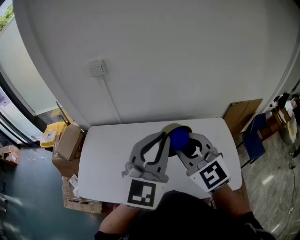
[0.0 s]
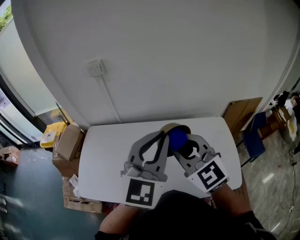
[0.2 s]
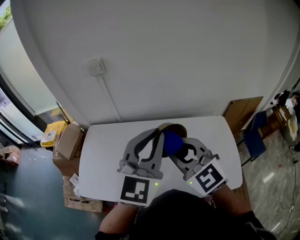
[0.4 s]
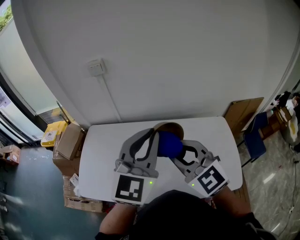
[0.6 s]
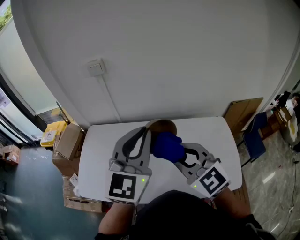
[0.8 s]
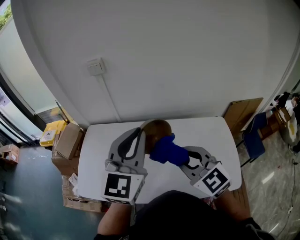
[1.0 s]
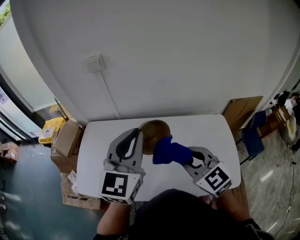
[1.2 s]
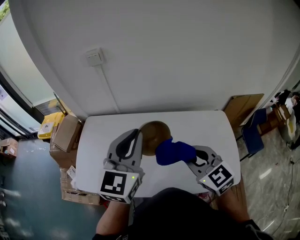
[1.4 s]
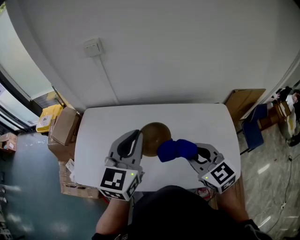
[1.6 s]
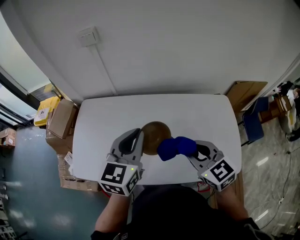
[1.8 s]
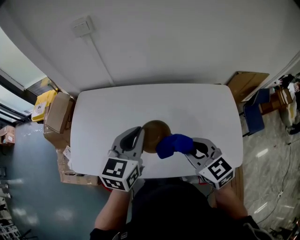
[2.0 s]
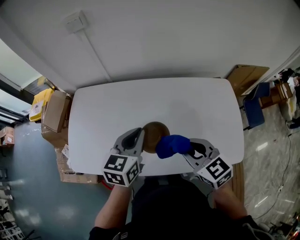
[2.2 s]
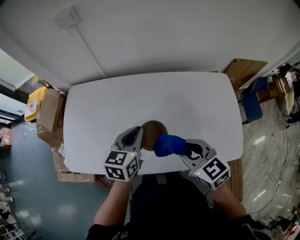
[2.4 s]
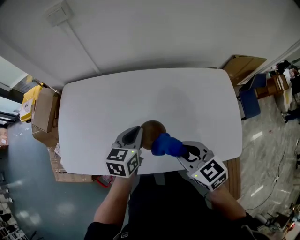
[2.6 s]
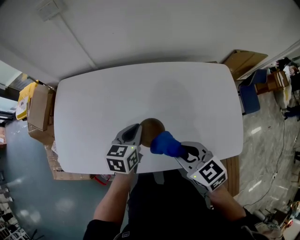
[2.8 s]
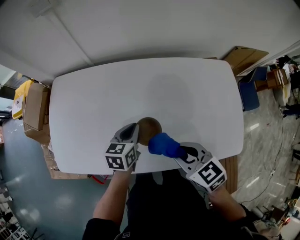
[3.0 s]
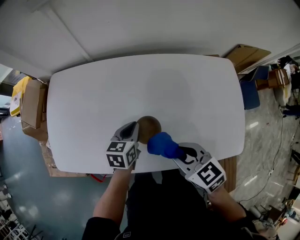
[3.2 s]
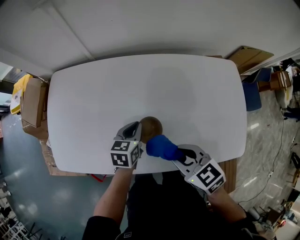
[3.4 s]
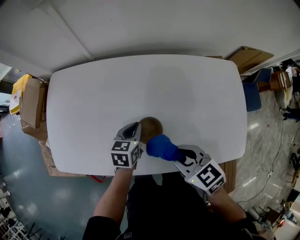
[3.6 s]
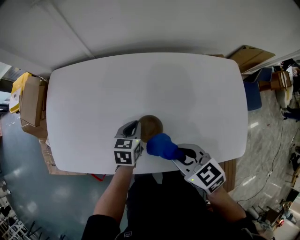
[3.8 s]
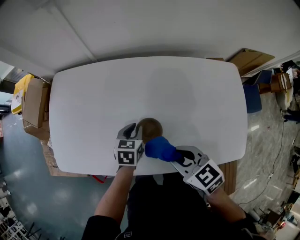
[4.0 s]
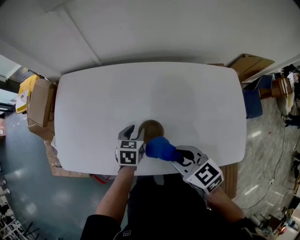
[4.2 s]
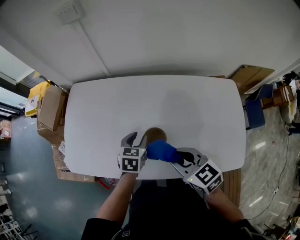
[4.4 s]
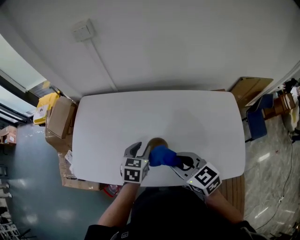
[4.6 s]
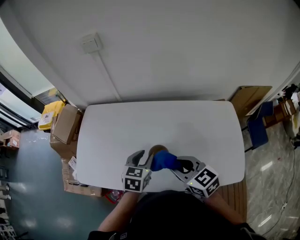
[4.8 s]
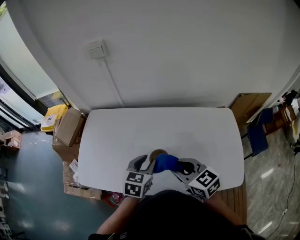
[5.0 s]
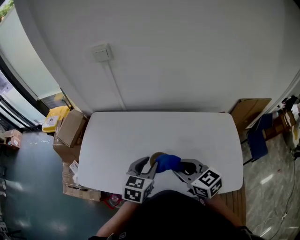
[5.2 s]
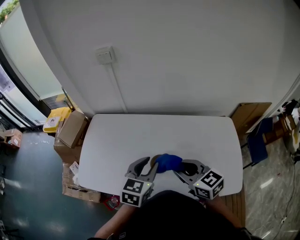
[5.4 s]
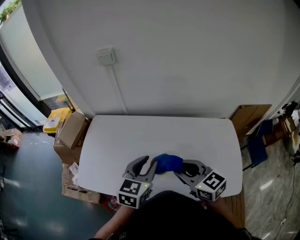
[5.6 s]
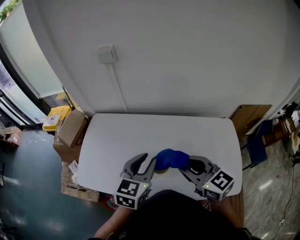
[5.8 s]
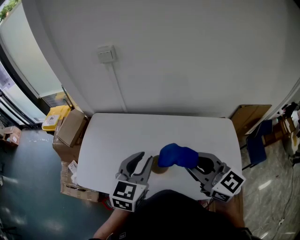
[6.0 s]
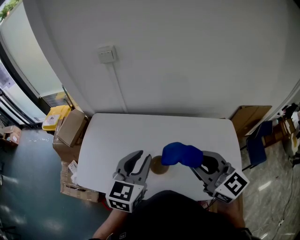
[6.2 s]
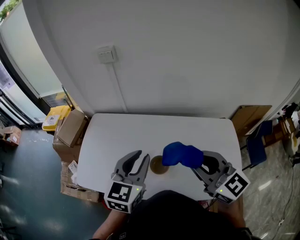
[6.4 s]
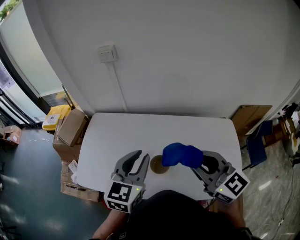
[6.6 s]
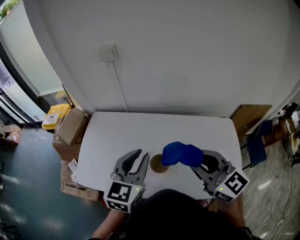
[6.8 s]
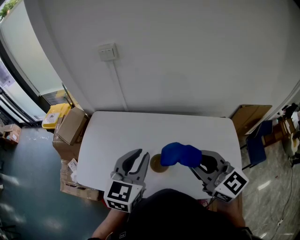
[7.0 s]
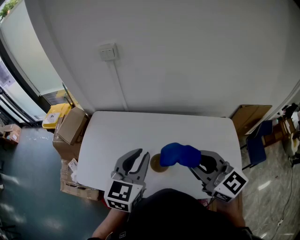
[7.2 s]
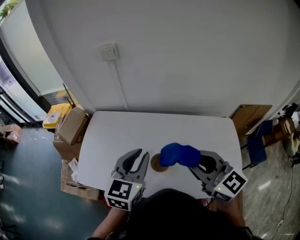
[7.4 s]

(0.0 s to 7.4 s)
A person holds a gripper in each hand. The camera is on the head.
0.0 s - 1.4 s: The left gripper travels to the left by some 5 cm. The right gripper goes some 10 cm downward.
1.4 s - 3.0 s: The left gripper heads downward, covering some 35 cm, and tilts its fingers about 30 degrees downward. The right gripper shifts roughly 20 cm downward, and swivels roughly 30 degrees.
3.0 s - 4.4 s: The left gripper opens up.
4.4 s - 6.0 s: Both grippers travel together upward, about 25 cm. The right gripper changes its angle by about 30 degrees, while the left gripper rotates about 30 degrees.
6.0 s - 7.4 s: The grippers make only small movements.

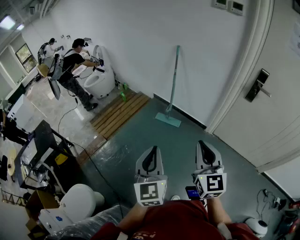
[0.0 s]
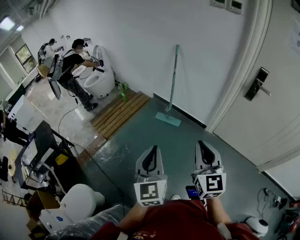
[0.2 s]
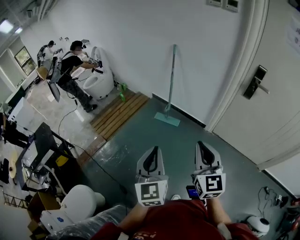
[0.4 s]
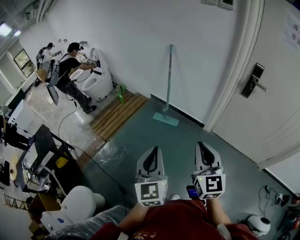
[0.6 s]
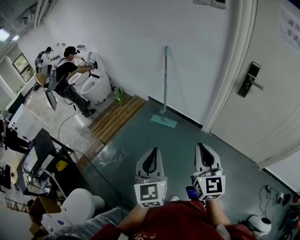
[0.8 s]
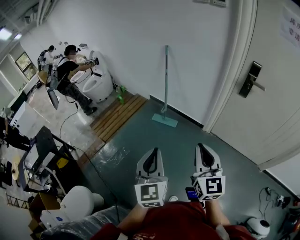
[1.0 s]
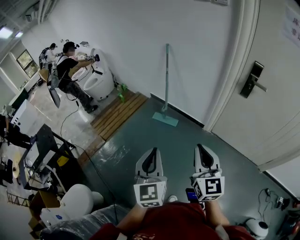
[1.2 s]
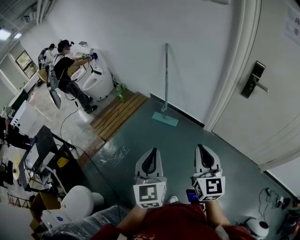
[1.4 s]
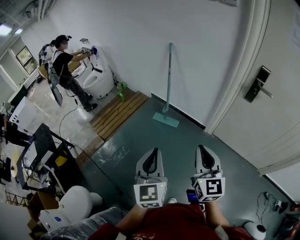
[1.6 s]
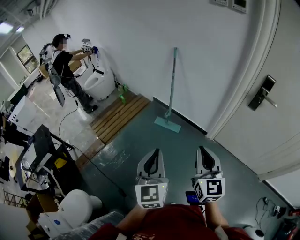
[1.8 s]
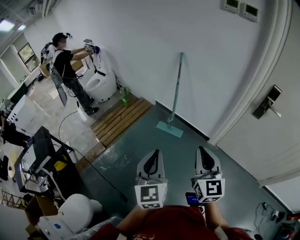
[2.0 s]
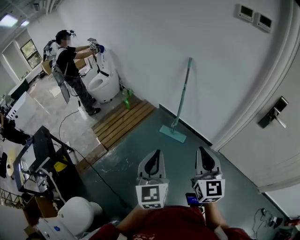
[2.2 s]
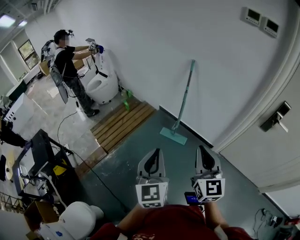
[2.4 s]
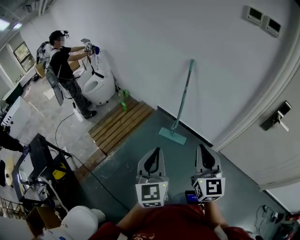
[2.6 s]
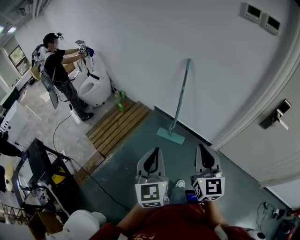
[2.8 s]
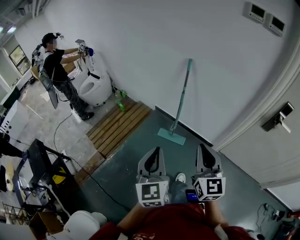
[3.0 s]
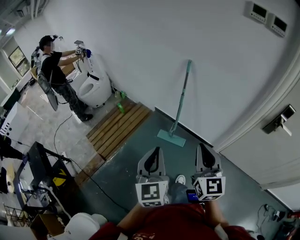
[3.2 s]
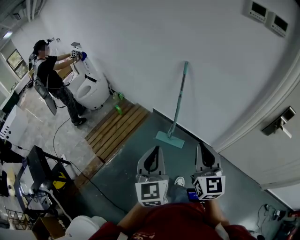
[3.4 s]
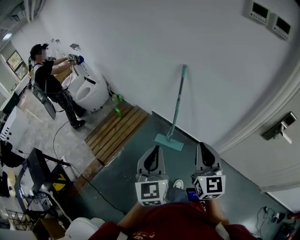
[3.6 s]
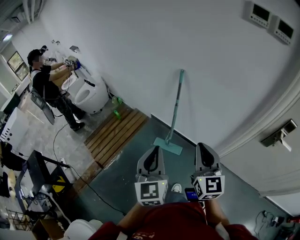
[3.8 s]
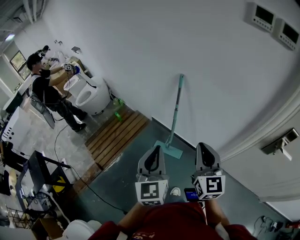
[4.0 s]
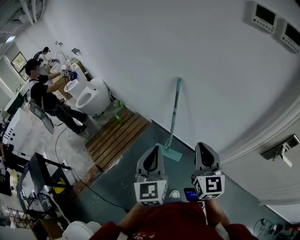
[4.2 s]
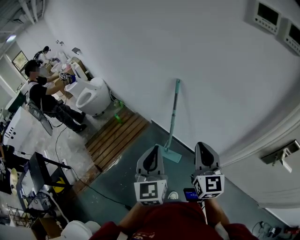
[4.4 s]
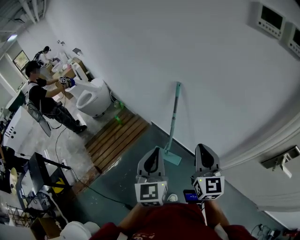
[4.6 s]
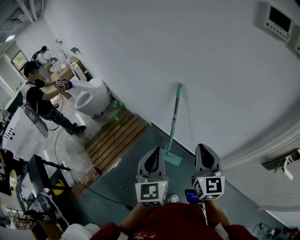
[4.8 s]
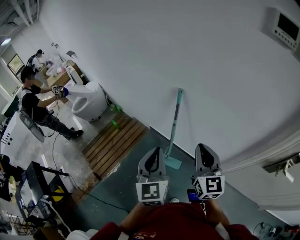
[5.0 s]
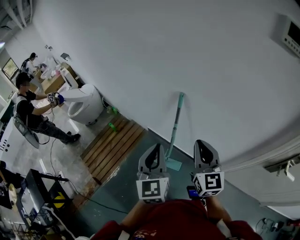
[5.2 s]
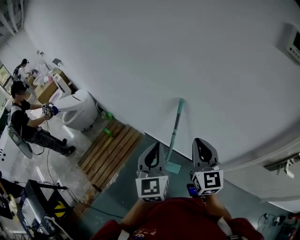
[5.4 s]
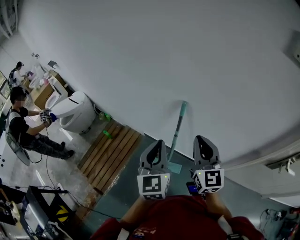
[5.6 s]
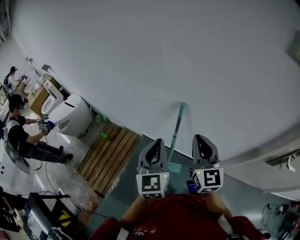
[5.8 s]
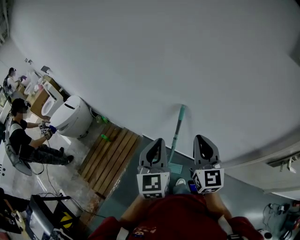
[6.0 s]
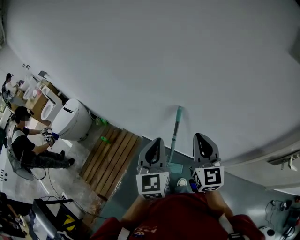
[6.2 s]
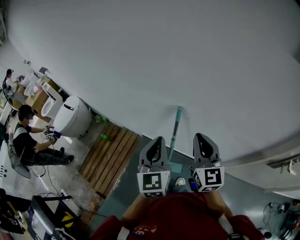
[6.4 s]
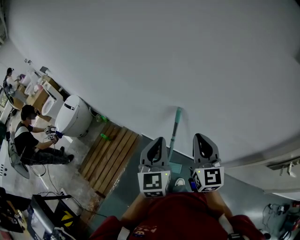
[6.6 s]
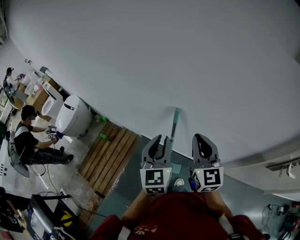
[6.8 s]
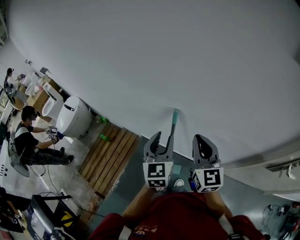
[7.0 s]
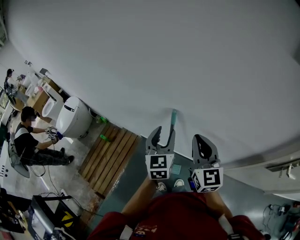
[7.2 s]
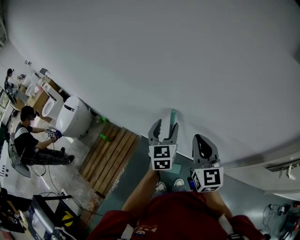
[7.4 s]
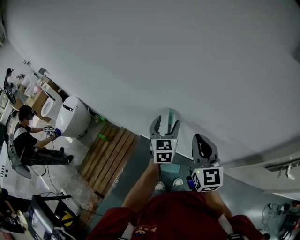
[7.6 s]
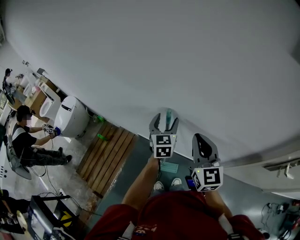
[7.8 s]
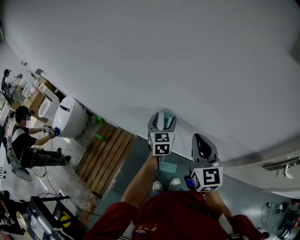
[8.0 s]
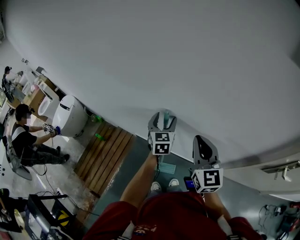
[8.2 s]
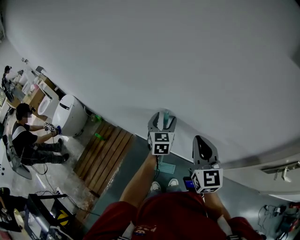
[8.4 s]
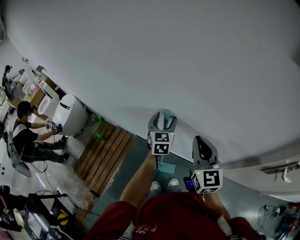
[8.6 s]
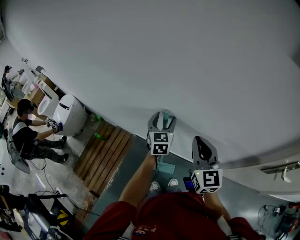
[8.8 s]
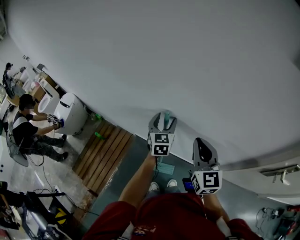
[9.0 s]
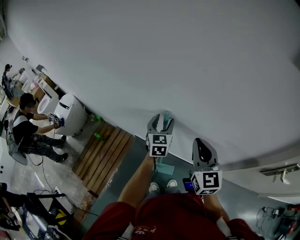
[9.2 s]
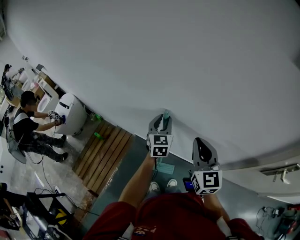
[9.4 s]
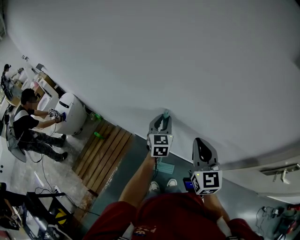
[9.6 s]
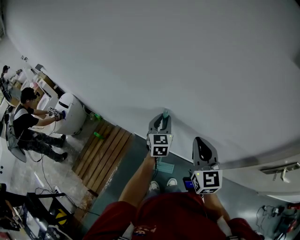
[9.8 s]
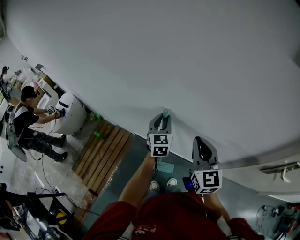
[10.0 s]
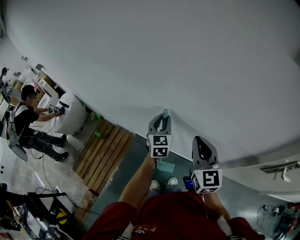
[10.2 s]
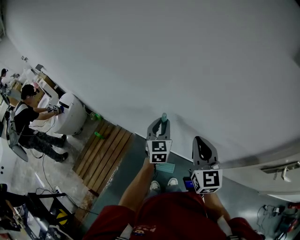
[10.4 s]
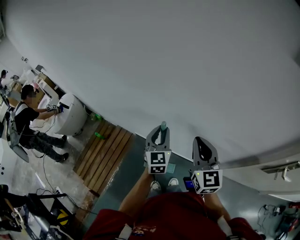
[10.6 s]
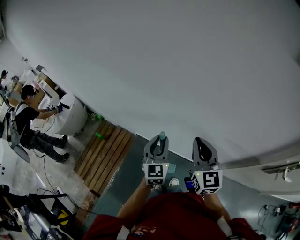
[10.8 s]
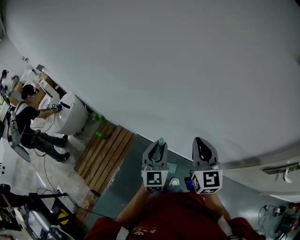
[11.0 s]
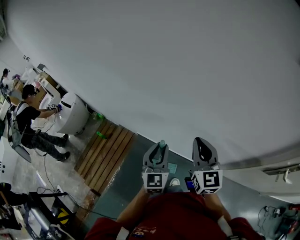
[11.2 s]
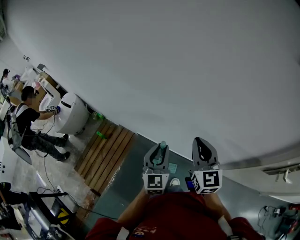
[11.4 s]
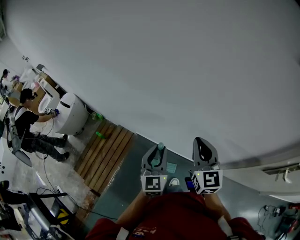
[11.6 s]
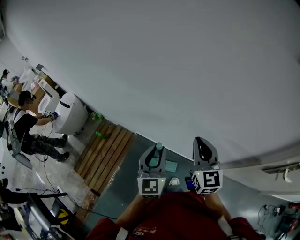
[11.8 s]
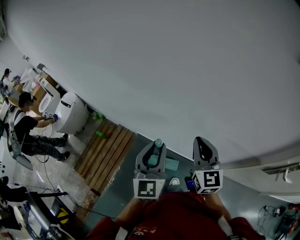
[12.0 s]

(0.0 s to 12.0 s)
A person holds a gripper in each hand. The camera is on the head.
0.0 s - 1.6 s: Both grippers travel together to the right and forward, approximately 10 cm.
1.6 s - 3.0 s: Both grippers travel together forward and to the left, some 30 cm.
3.0 s - 4.4 s: The two grippers go approximately 30 cm forward and to the right.
4.4 s - 6.0 s: The grippers both shift forward by approximately 25 cm.
6.0 s - 7.6 s: The left gripper shifts approximately 20 cm forward, to the right and downward, and opens up; the right gripper shifts roughly 10 cm to the right.
7.6 s - 9.0 s: The grippers make only small movements.
9.0 s - 10.4 s: The left gripper closes its fingers.
10.4 s - 12.0 s: The left gripper moves backward and upward, some 20 cm.

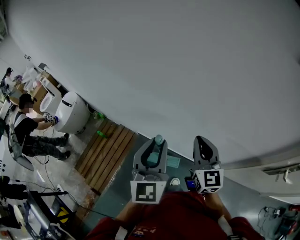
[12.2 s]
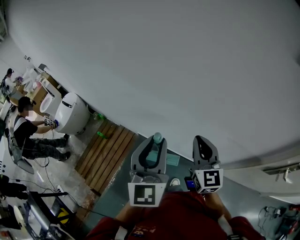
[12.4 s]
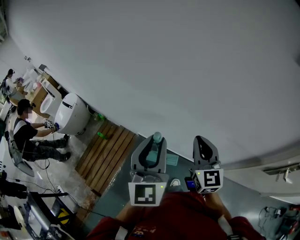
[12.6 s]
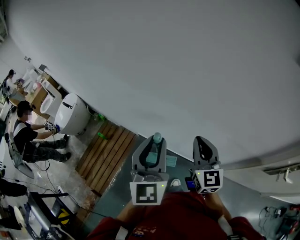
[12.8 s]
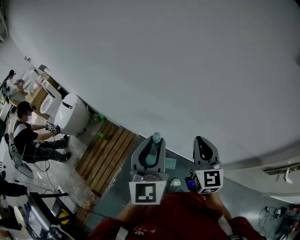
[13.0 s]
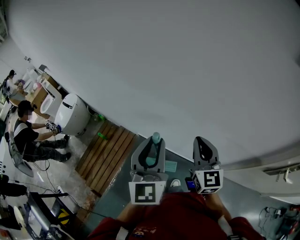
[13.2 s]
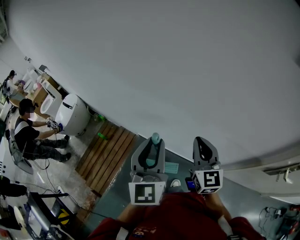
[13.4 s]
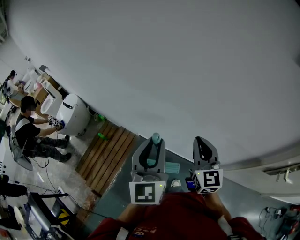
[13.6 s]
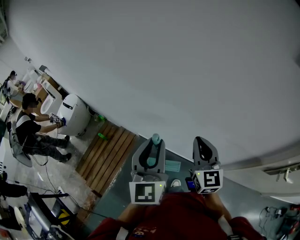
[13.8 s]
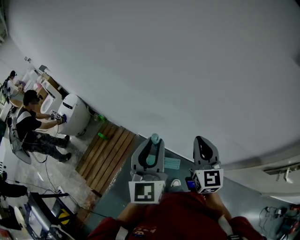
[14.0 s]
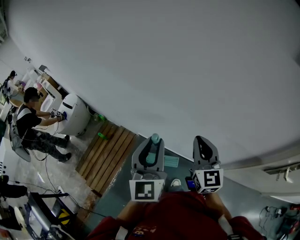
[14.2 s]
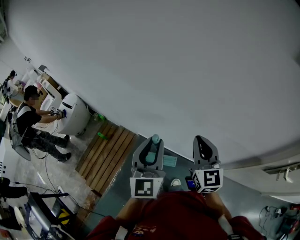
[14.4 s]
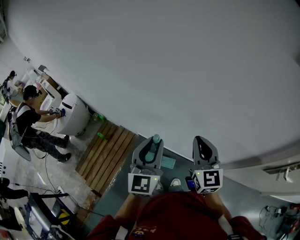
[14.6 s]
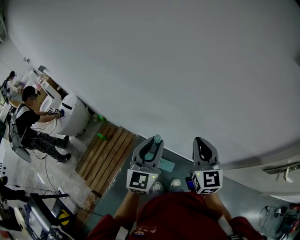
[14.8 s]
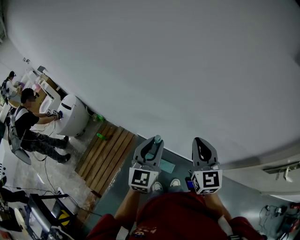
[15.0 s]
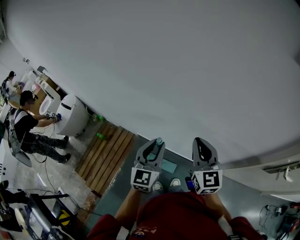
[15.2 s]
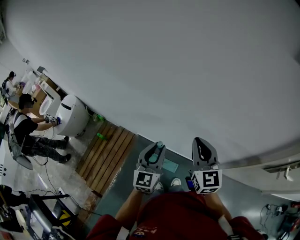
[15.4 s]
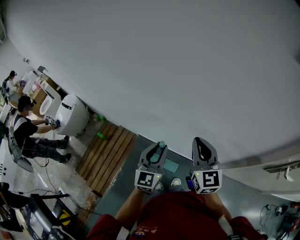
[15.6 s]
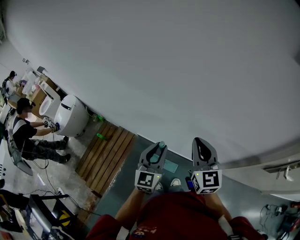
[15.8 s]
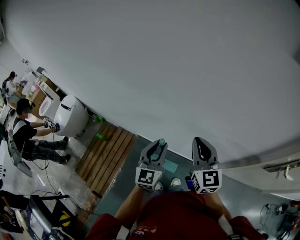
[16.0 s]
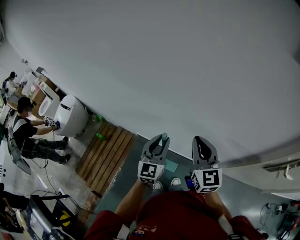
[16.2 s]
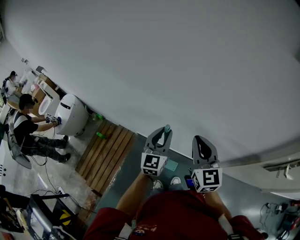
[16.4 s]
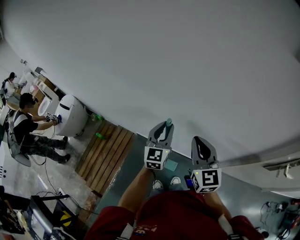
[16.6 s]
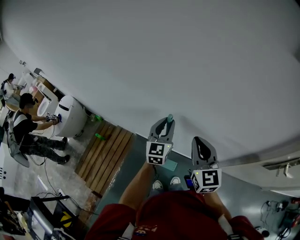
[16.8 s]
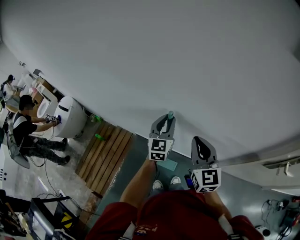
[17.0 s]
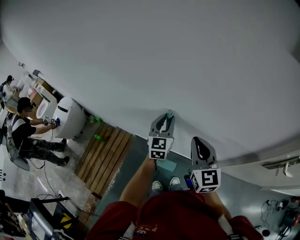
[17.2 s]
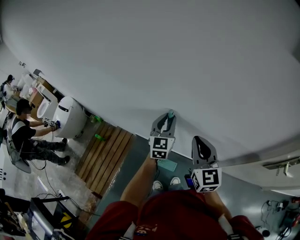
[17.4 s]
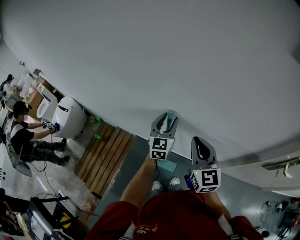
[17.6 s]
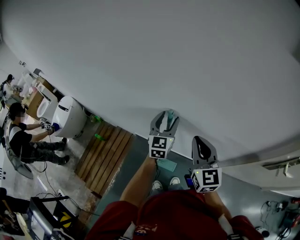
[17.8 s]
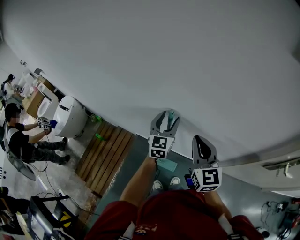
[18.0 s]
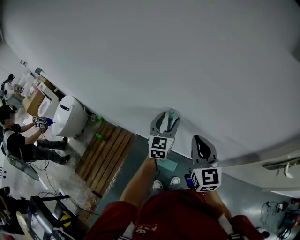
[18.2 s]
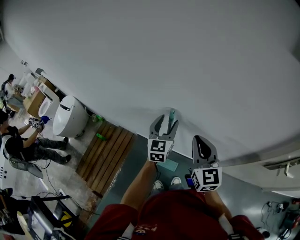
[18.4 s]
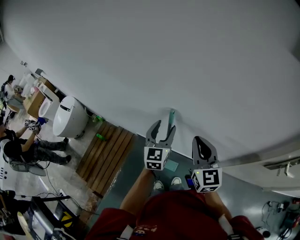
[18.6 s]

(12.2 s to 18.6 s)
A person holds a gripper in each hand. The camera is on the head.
12.2 s - 13.8 s: The grippers move only a little.
13.8 s - 15.4 s: The left gripper travels downward by approximately 15 cm.
15.4 s - 17.0 s: The left gripper goes roughly 15 cm forward.
17.0 s - 18.6 s: The left gripper opens.
